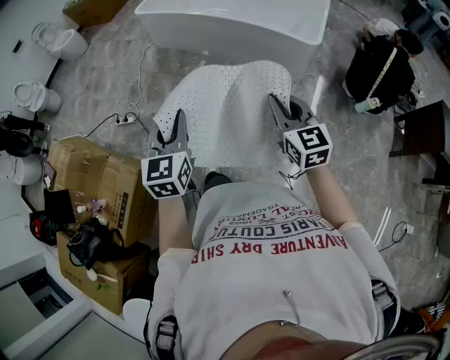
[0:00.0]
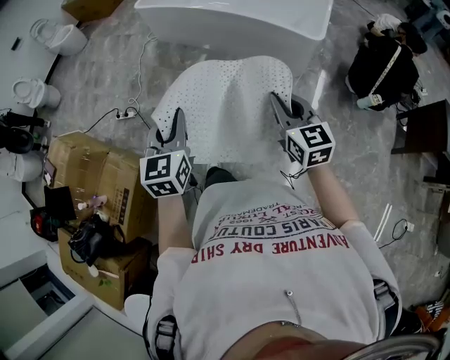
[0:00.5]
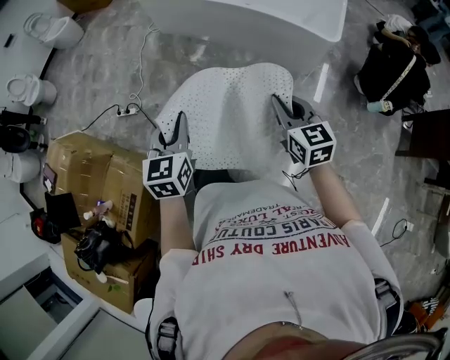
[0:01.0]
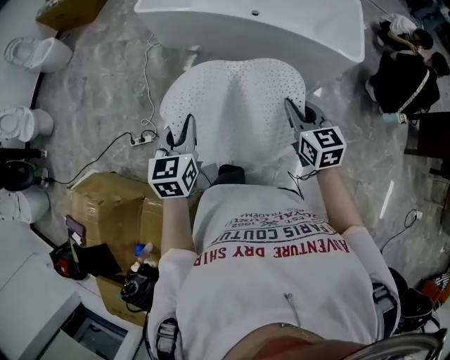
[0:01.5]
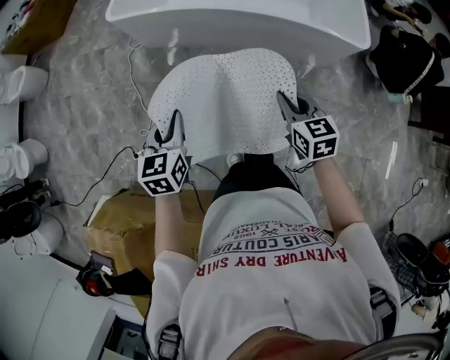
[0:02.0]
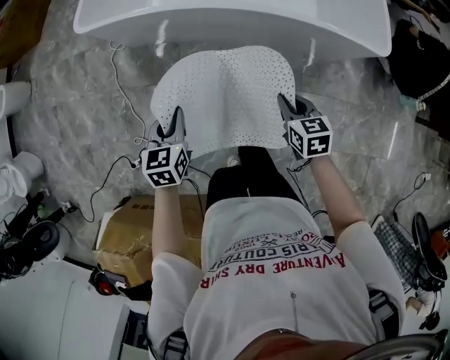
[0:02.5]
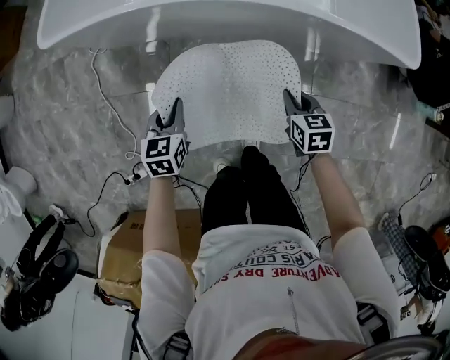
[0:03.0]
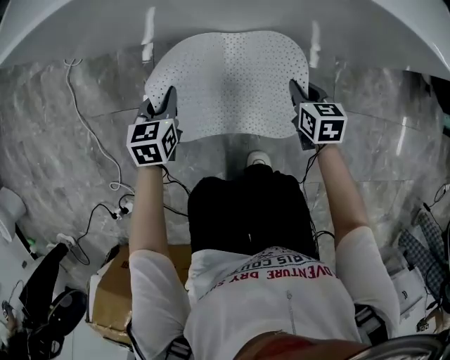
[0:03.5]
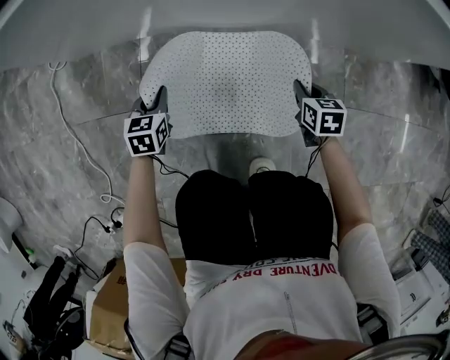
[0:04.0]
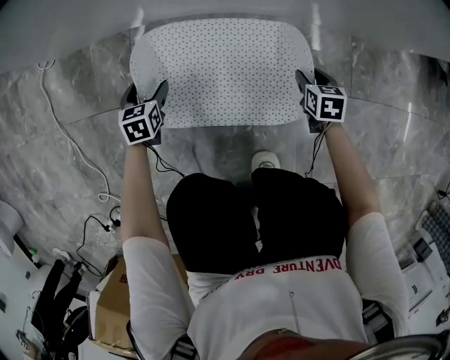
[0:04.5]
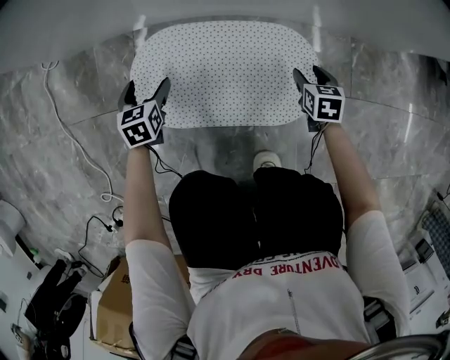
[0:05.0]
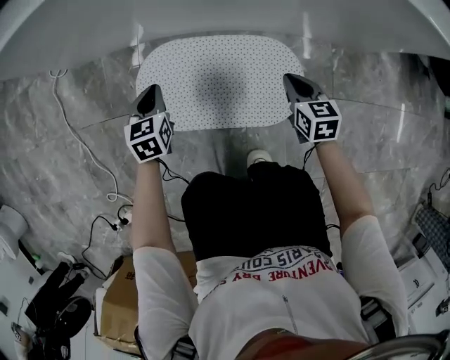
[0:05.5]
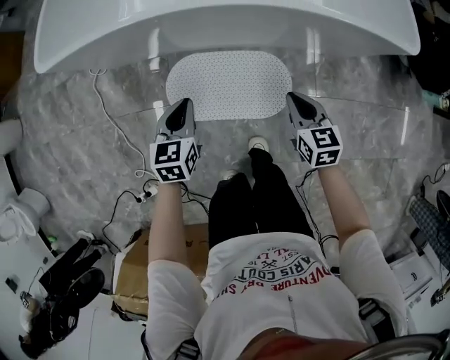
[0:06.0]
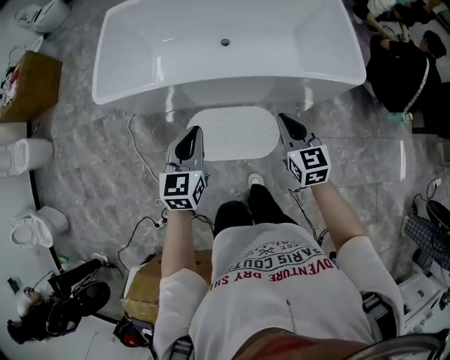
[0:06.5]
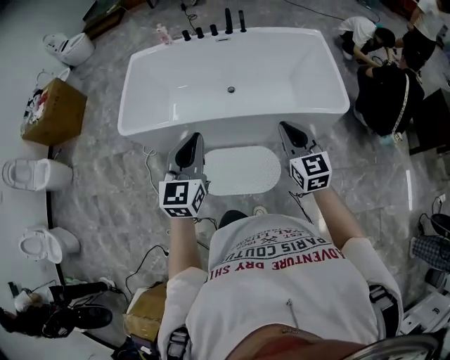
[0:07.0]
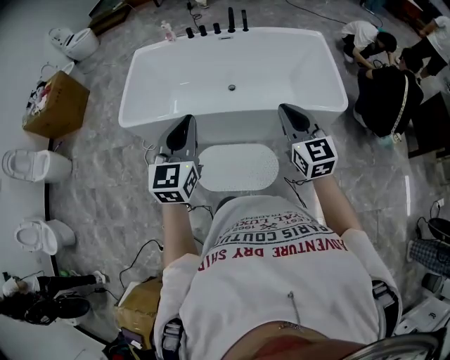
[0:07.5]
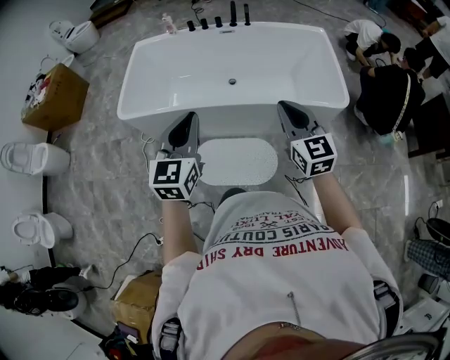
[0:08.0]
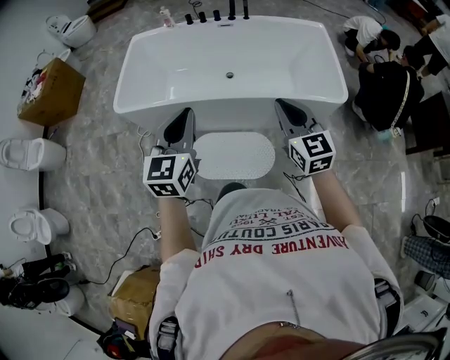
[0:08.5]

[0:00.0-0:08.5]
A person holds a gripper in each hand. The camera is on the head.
0:00.0 to 0:02.0: Both grippers are carried forward and to the left, about 50 cm. The left gripper swivels some 20 degrees, while the right gripper turns by approximately 30 degrees.
0:02.0 to 0:04.0: The right gripper heads downward, covering some 70 cm, and changes its angle by about 30 degrees. The left gripper travels downward and forward by some 80 cm, and swivels approximately 20 degrees.
0:04.0 to 0:06.5: The grippers both shift upward by approximately 60 cm. The right gripper tilts its fingers some 30 degrees upward, and opens, then closes once more; the left gripper turns by approximately 30 degrees, and opens, then closes again.
0:06.5 to 0:08.5: The two grippers go approximately 10 cm to the right and upward.

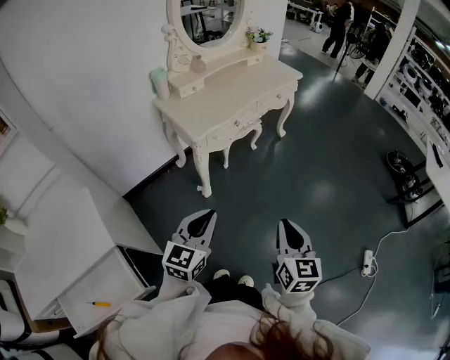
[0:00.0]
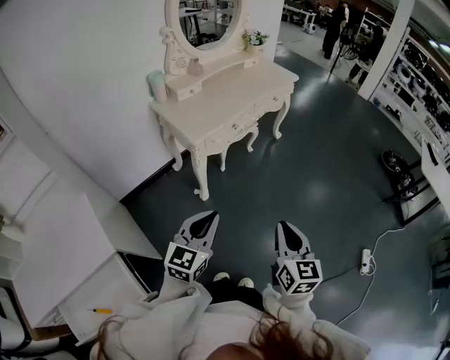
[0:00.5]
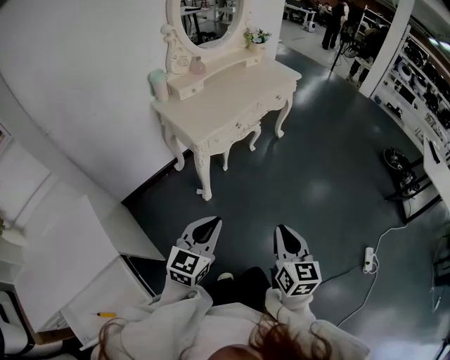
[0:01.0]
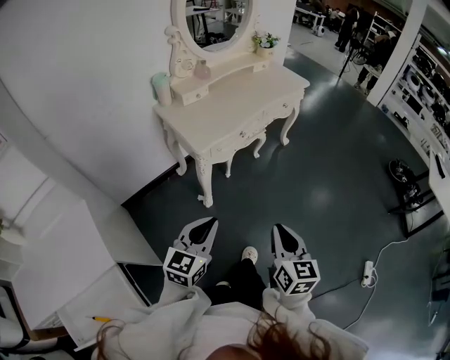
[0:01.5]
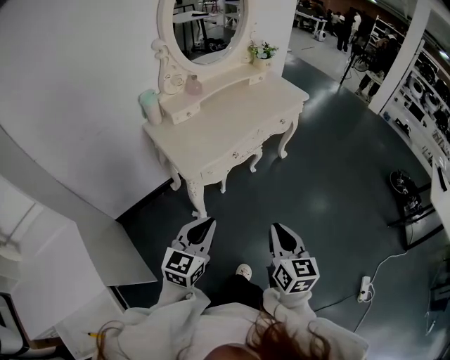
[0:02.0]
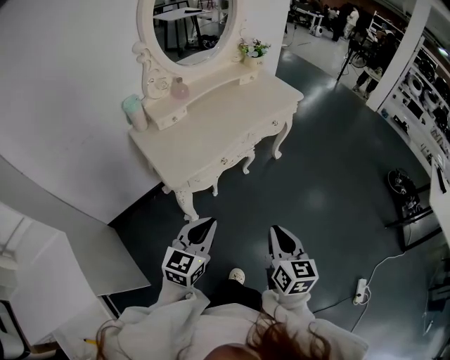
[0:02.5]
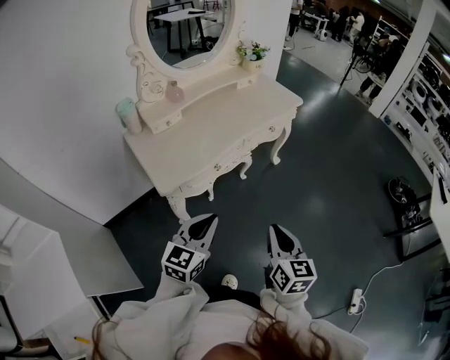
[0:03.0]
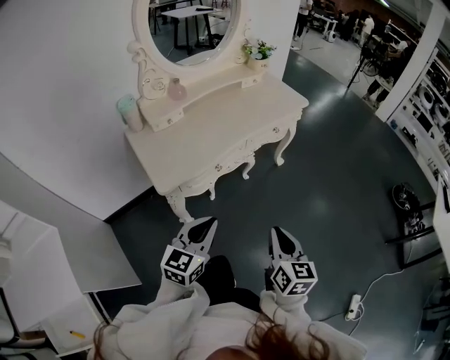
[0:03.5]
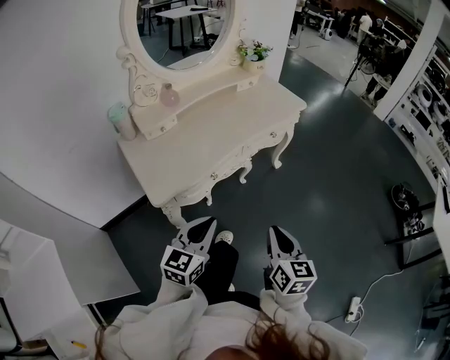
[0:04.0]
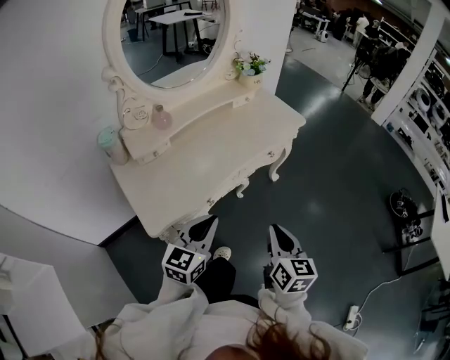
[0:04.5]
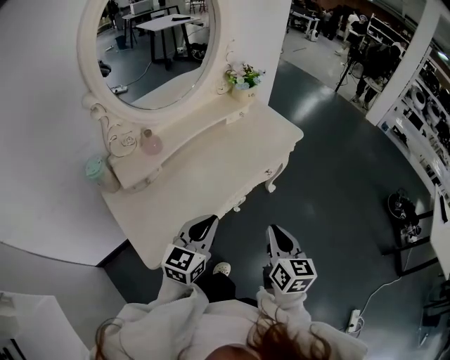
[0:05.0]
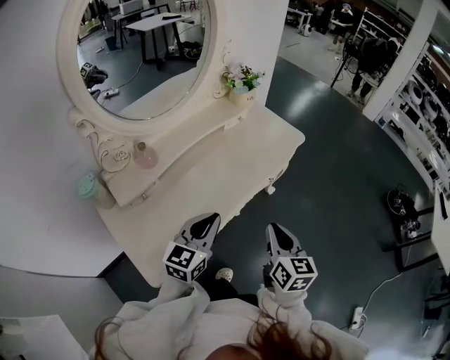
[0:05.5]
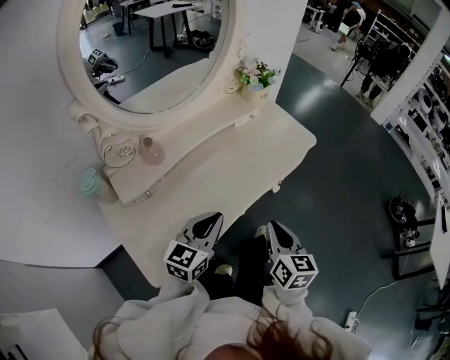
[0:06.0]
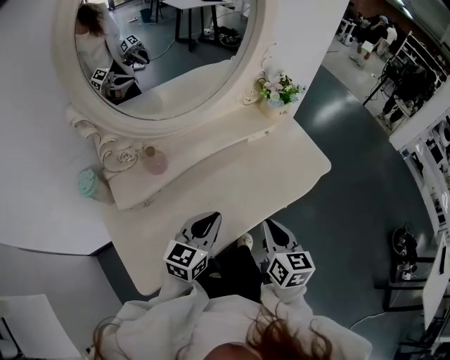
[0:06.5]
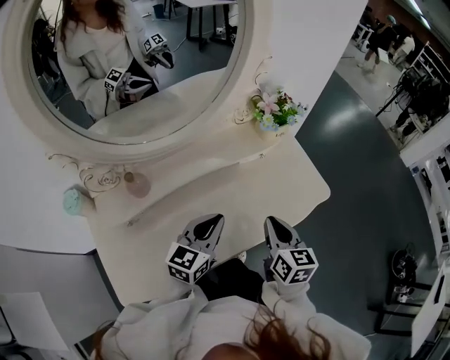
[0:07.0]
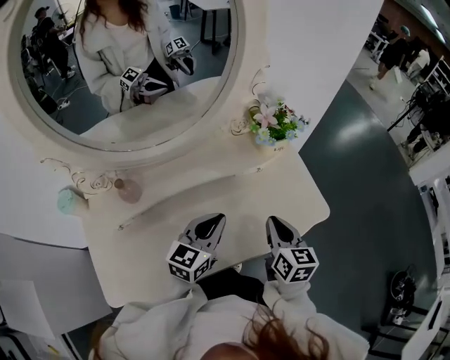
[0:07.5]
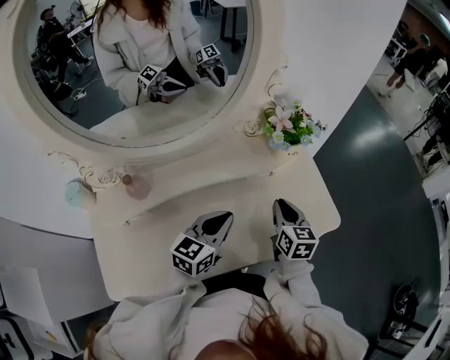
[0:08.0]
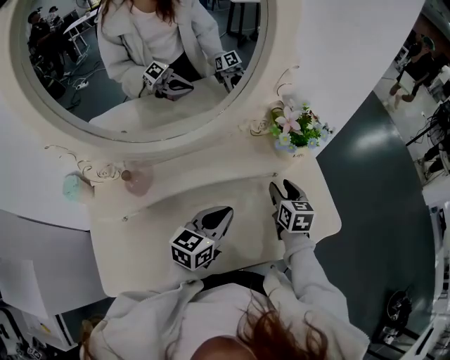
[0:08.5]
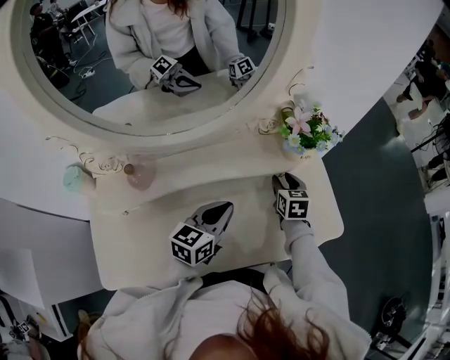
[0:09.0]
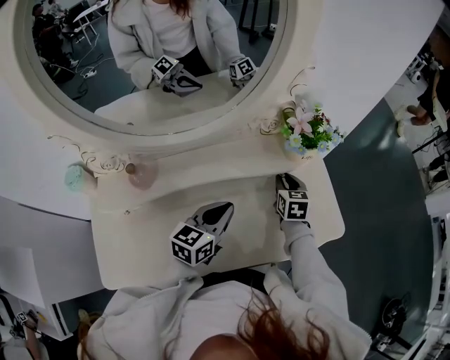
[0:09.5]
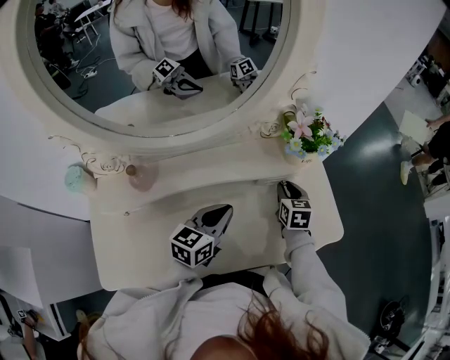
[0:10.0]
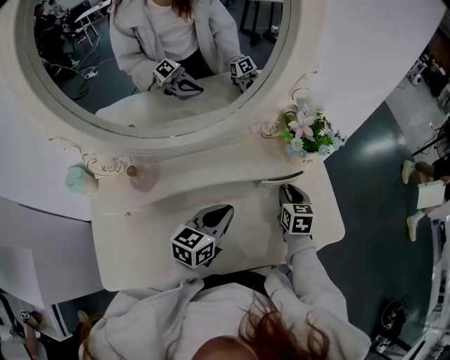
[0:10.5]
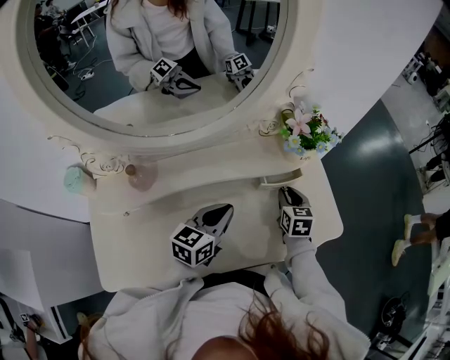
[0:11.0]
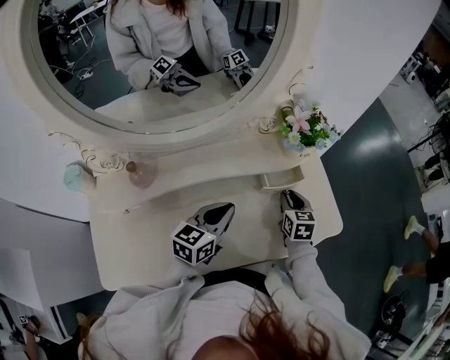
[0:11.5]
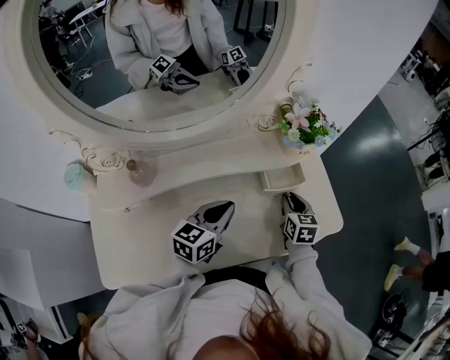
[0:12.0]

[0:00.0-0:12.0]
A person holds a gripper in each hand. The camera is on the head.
0:00.0 to 0:02.0: Both grippers move forward, approximately 10 cm.
0:02.0 to 0:04.0: Both grippers travel together forward and to the right, some 10 cm.
0:04.0 to 0:06.0: Both grippers move forward, approximately 25 cm.
0:06.0 to 0:08.0: The right gripper shifts some 35 cm forward, and swivels some 20 degrees. Meanwhile the left gripper is displaced forward by roughly 25 cm.
0:08.0 to 0:10.0: The right gripper travels forward and downward by about 10 cm.
0:10.0 to 0:12.0: The right gripper is displaced backward by approximately 5 cm.

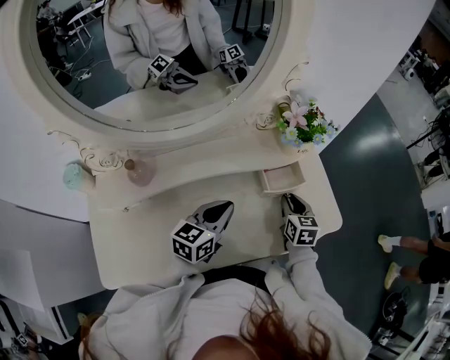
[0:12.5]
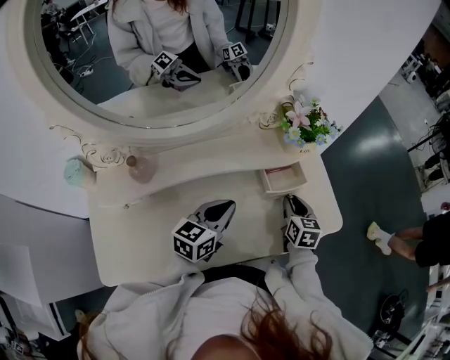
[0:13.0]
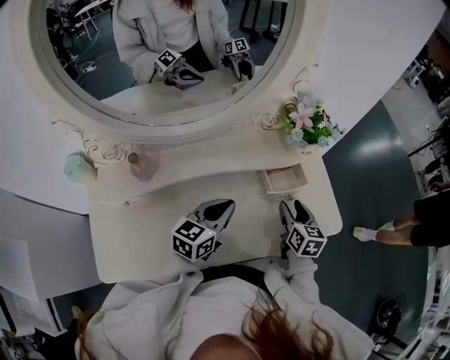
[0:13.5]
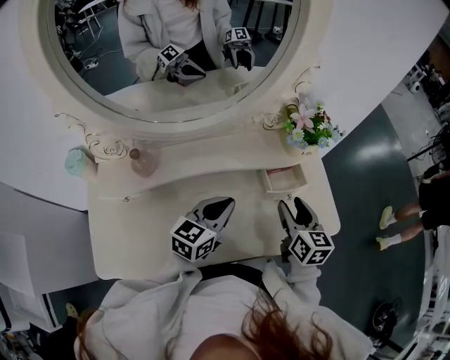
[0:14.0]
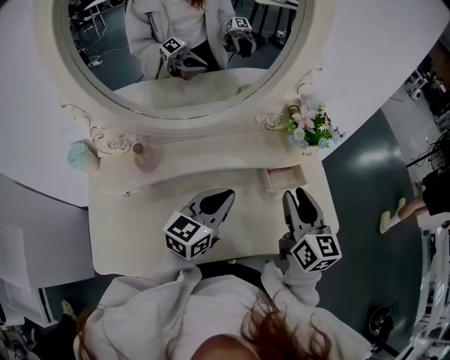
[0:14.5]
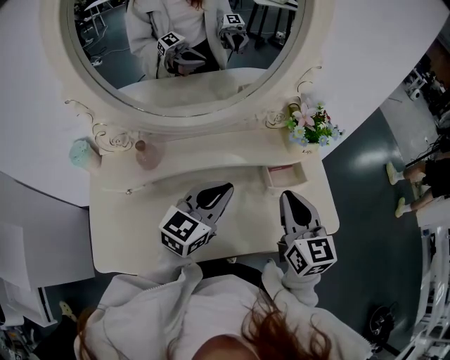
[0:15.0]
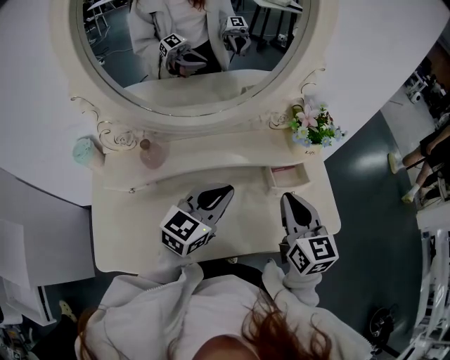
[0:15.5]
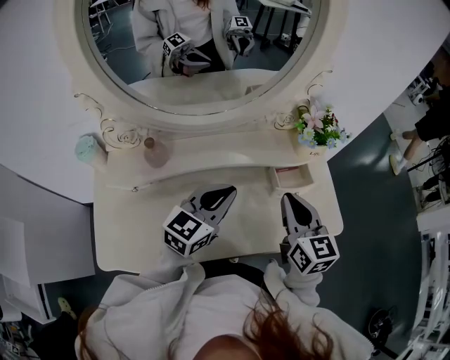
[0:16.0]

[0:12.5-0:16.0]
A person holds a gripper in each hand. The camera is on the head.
0:12.5 to 0:14.5: The left gripper shifts roughly 5 cm upward. Meanwhile the right gripper travels upward by some 20 cm, and turns by about 30 degrees.
0:14.5 to 0:16.0: The right gripper closes its fingers.

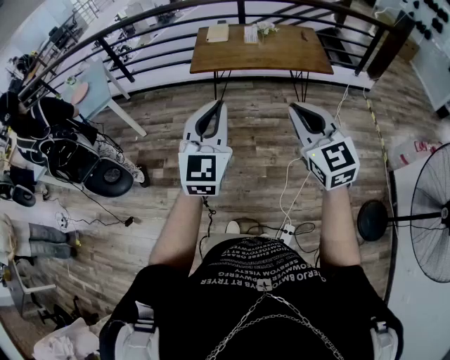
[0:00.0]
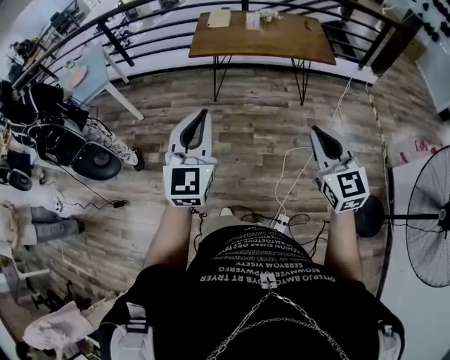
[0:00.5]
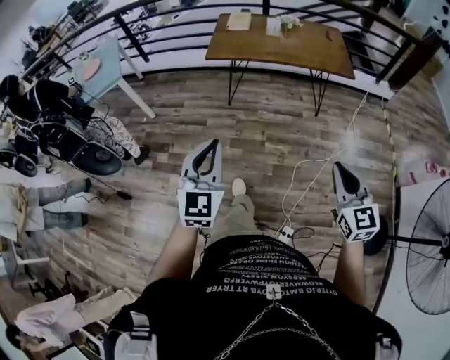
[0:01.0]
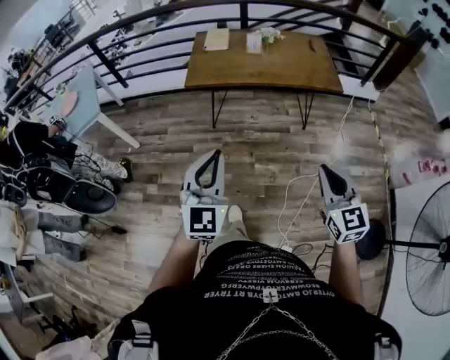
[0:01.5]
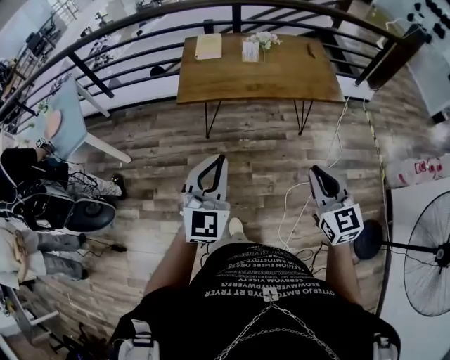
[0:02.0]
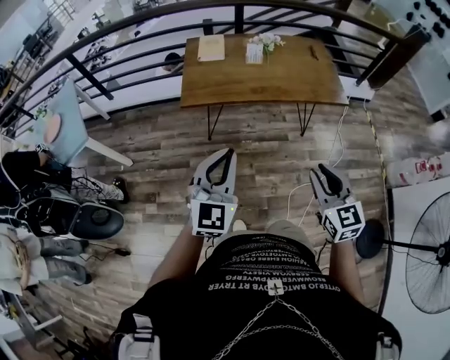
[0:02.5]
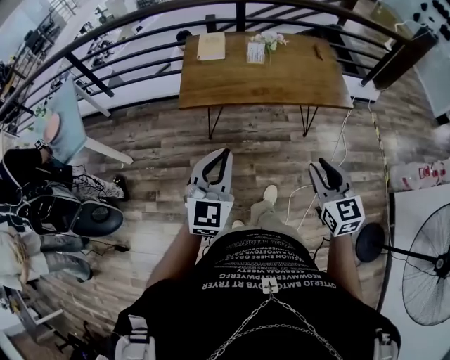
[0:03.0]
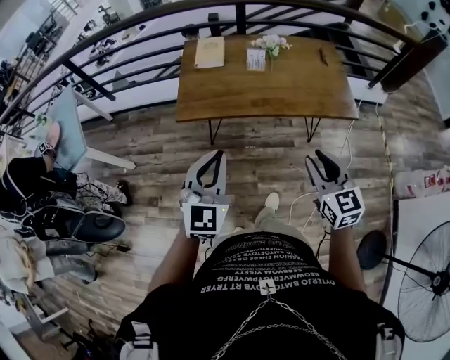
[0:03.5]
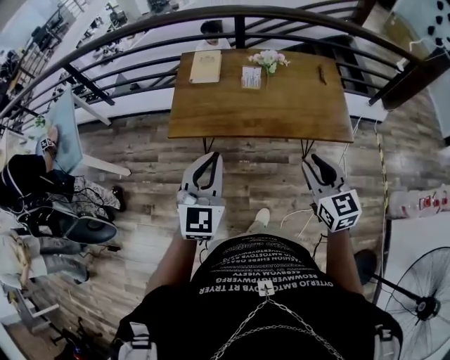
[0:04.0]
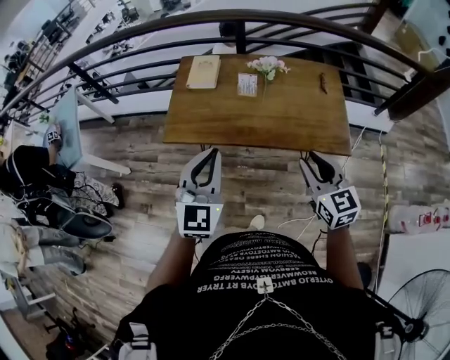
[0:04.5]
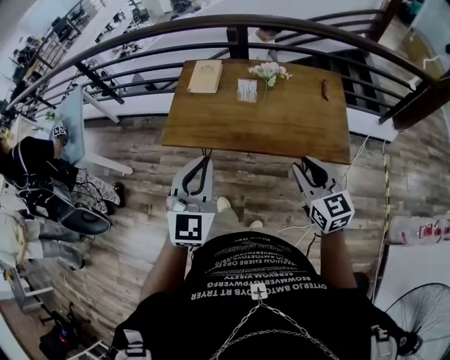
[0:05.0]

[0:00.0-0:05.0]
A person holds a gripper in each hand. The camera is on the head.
0:00.0 to 0:02.5: Both grippers move forward and downward, about 25 cm. The right gripper opens up.
0:02.5 to 0:05.0: The grippers both shift forward and to the right by roughly 30 cm.
